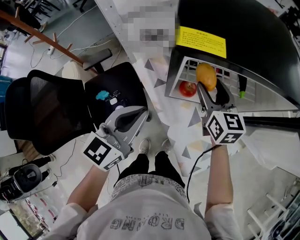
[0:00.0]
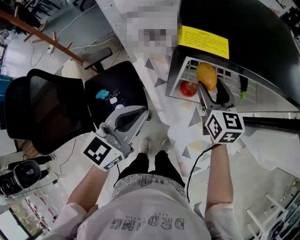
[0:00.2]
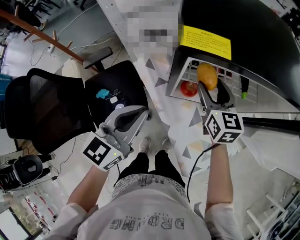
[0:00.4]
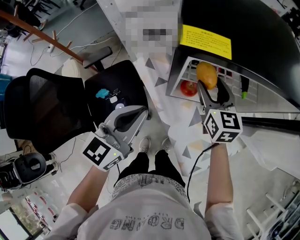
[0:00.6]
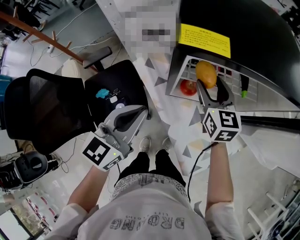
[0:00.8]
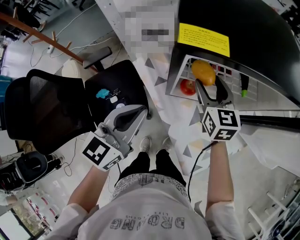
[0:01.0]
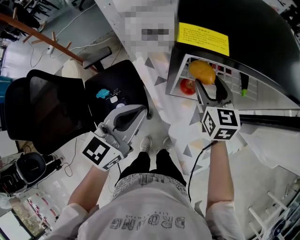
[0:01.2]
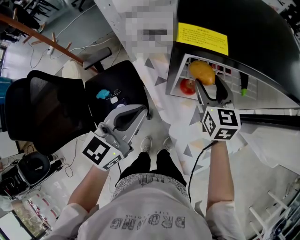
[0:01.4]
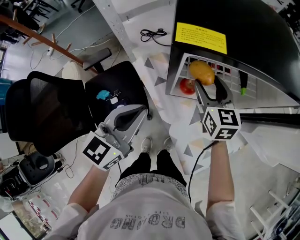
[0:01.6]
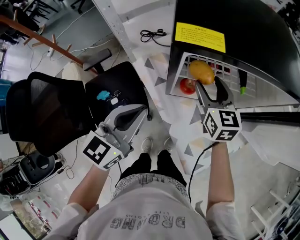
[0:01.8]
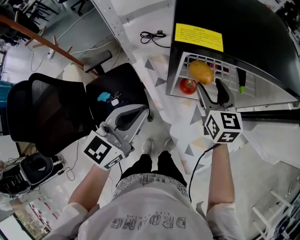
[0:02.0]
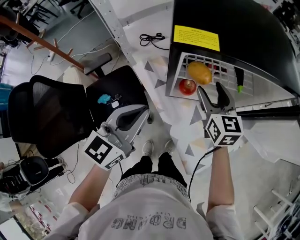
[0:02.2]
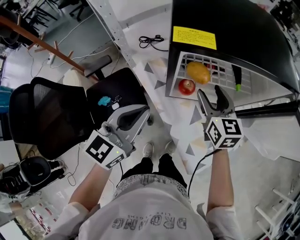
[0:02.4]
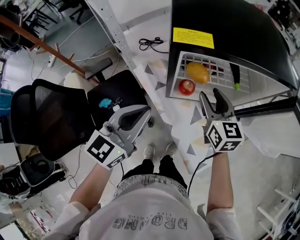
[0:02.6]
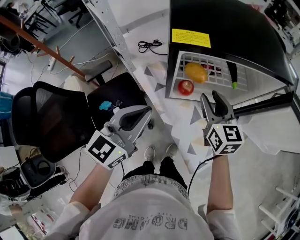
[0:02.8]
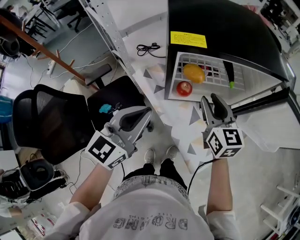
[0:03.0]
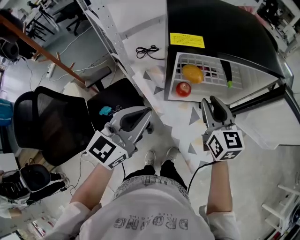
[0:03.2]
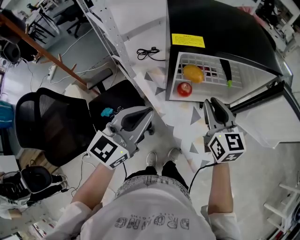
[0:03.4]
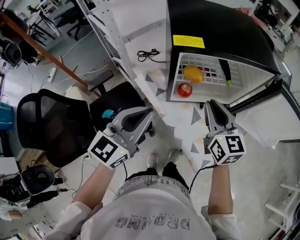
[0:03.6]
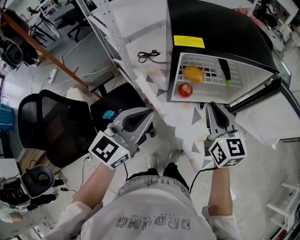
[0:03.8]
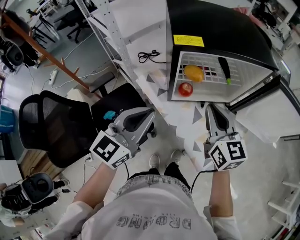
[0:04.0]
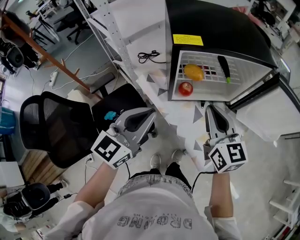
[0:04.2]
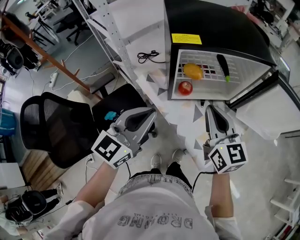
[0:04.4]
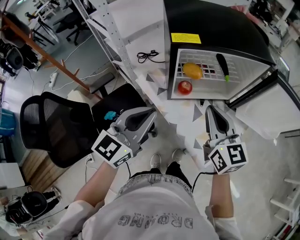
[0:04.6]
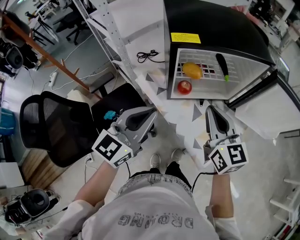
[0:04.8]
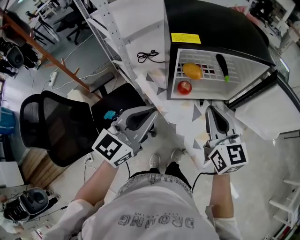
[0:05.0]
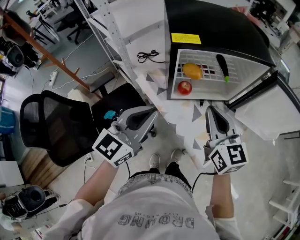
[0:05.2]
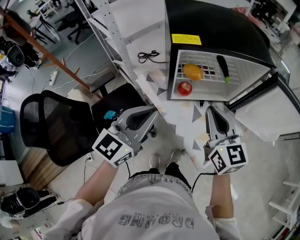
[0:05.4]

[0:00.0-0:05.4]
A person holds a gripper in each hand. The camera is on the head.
0:00.0 to 0:01.4: The grippers move only a little.
0:01.4 to 0:02.8: The right gripper is displaced backward by roughly 10 cm, and closes its fingers.
0:02.8 to 0:04.0: The left gripper changes place by approximately 5 cm; the right gripper moves backward and upward, some 10 cm, and closes up.
0:04.0 to 0:05.4: The grippers move only a little.

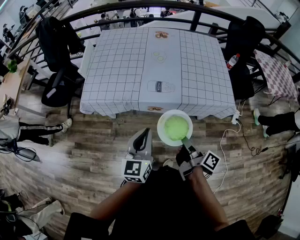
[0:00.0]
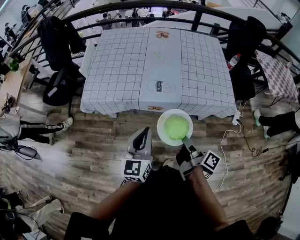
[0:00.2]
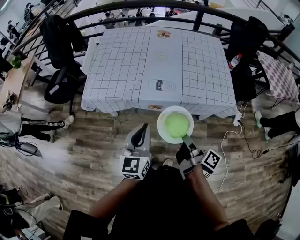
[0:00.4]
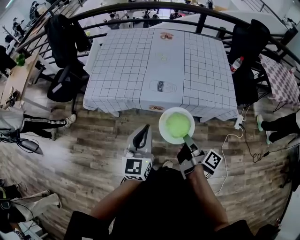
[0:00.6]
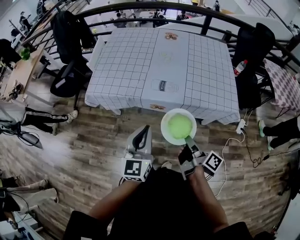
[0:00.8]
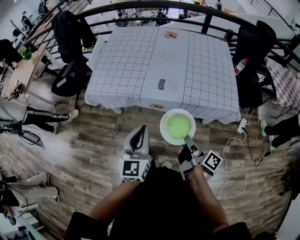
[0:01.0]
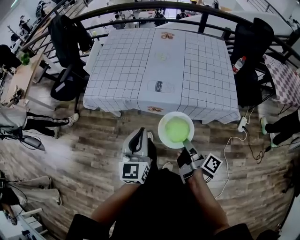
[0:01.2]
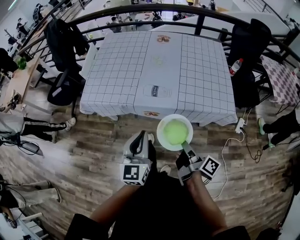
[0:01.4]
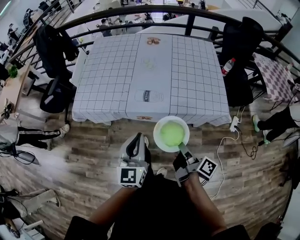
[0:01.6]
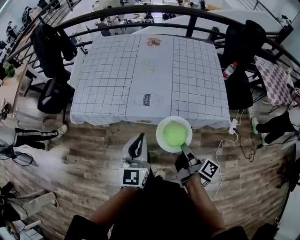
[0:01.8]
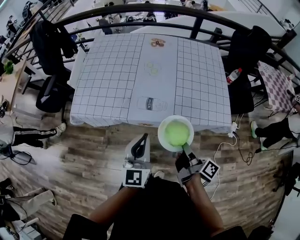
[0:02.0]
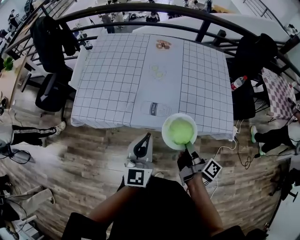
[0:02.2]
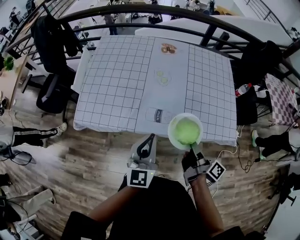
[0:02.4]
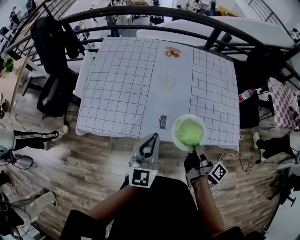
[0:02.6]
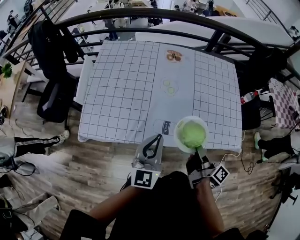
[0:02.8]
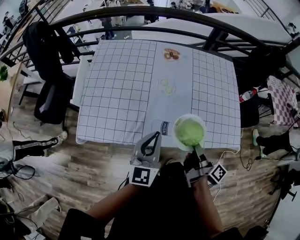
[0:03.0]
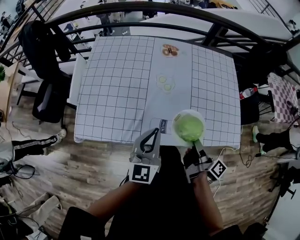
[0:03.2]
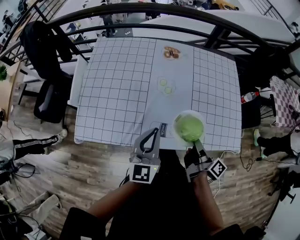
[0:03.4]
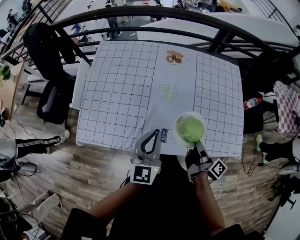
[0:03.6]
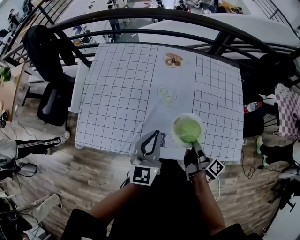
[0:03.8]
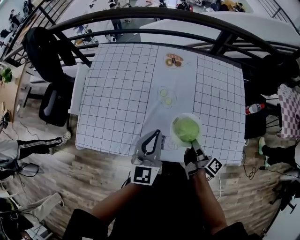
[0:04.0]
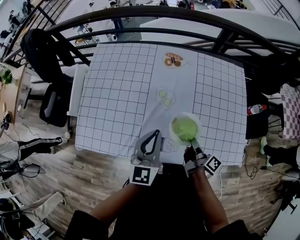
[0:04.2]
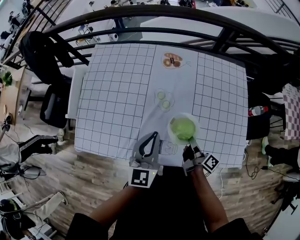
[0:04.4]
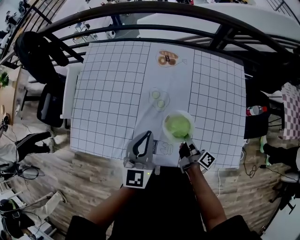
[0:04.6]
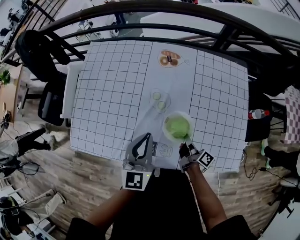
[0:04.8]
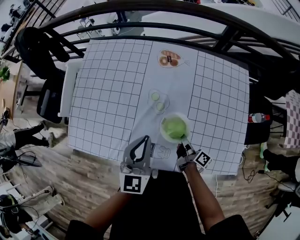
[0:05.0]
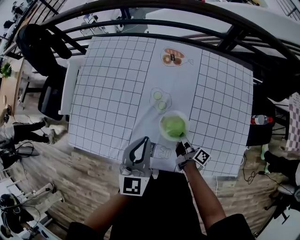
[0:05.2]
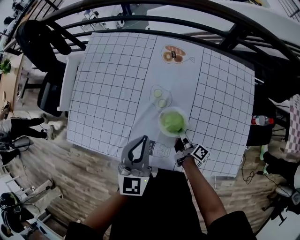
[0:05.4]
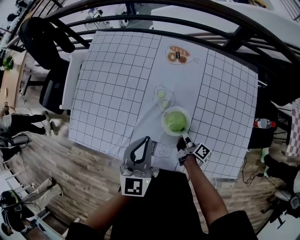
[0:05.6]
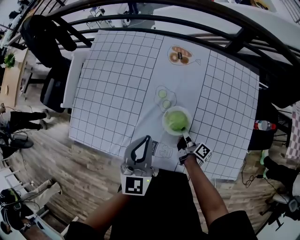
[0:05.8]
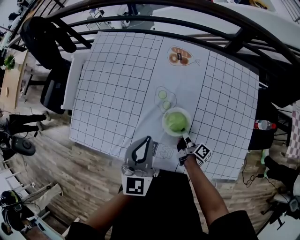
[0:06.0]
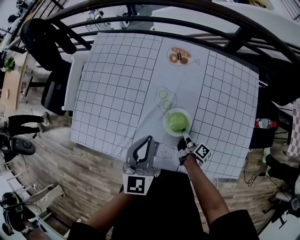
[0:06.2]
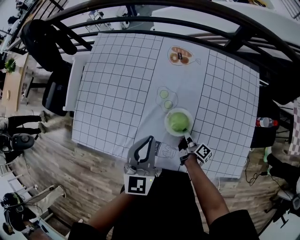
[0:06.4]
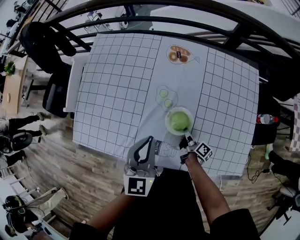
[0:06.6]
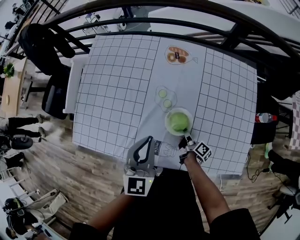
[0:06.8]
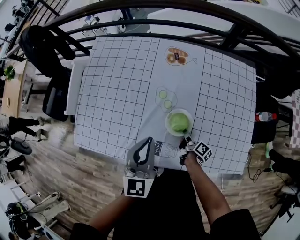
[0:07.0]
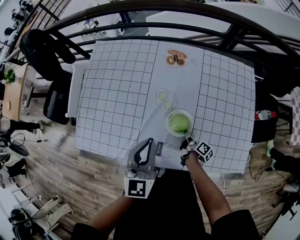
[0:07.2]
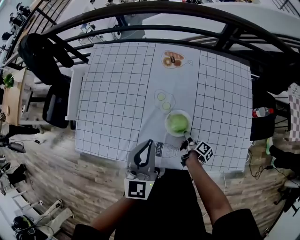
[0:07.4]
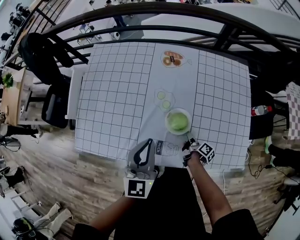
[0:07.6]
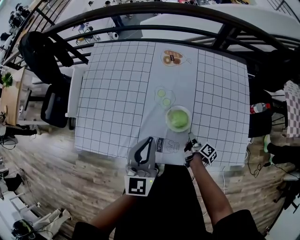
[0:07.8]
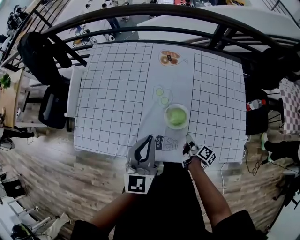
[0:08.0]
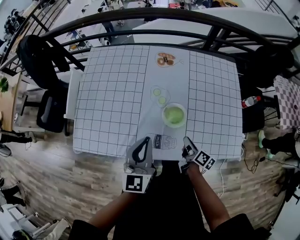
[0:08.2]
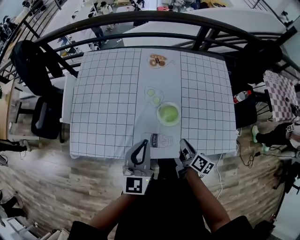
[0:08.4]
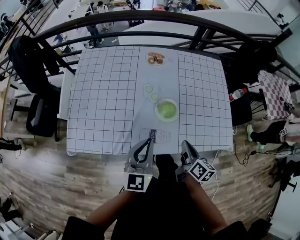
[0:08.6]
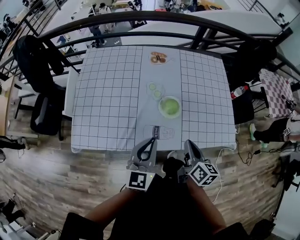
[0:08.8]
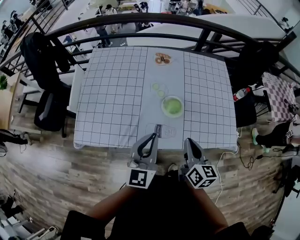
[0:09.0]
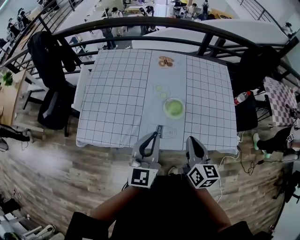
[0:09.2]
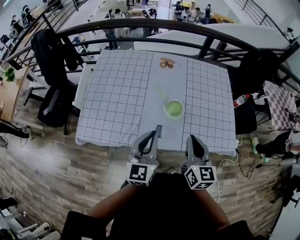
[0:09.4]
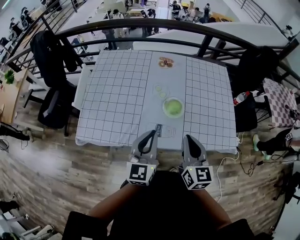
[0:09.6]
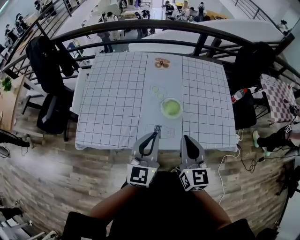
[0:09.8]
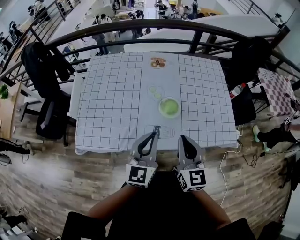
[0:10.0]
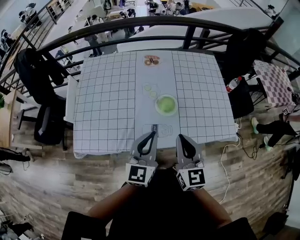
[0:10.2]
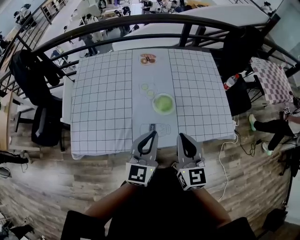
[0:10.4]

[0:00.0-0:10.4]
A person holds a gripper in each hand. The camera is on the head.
0:00.0 to 0:01.4: The left gripper changes place by about 5 cm.
0:01.4 to 0:03.0: The left gripper moves about 30 cm.
0:03.0 to 0:04.4: The left gripper changes place by about 15 cm.
0:07.4 to 0:09.0: The left gripper changes place by some 15 cm.

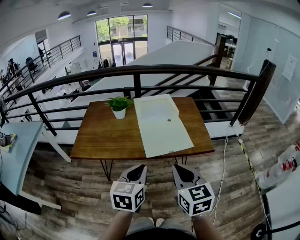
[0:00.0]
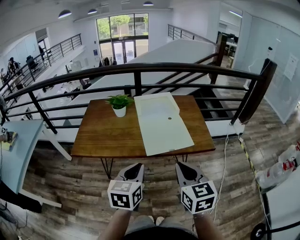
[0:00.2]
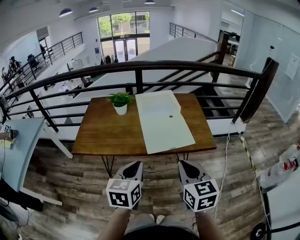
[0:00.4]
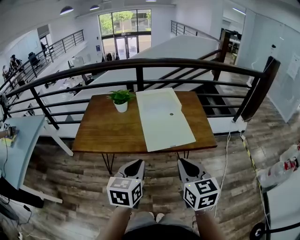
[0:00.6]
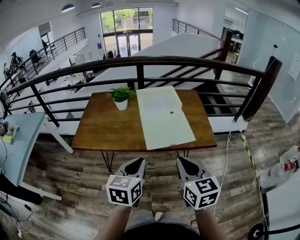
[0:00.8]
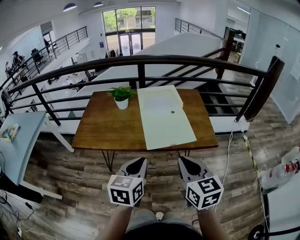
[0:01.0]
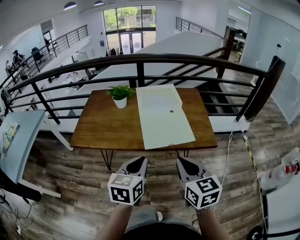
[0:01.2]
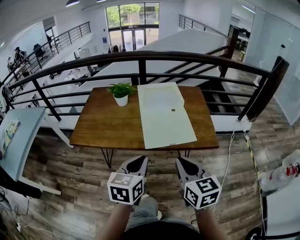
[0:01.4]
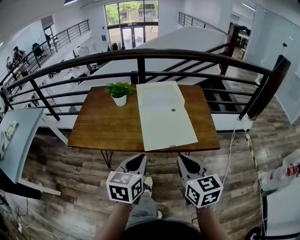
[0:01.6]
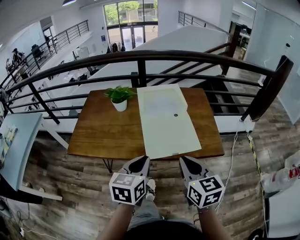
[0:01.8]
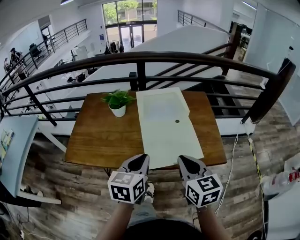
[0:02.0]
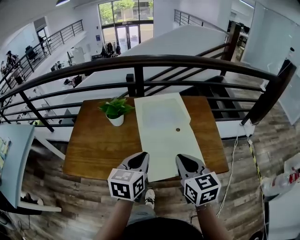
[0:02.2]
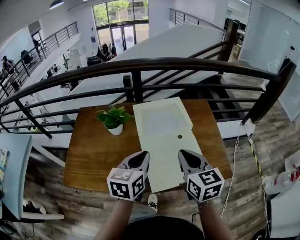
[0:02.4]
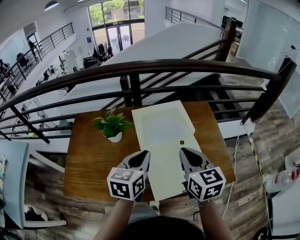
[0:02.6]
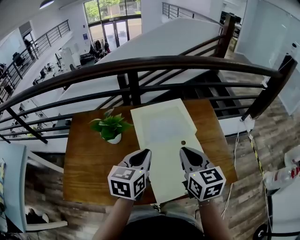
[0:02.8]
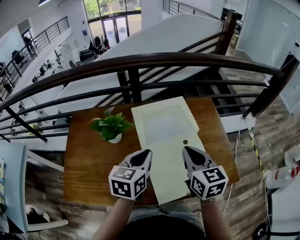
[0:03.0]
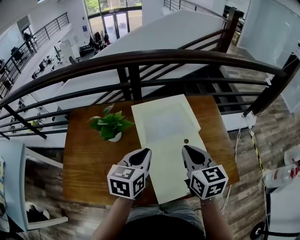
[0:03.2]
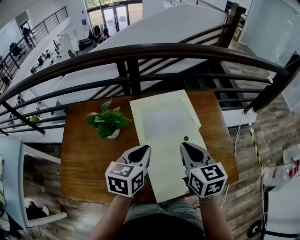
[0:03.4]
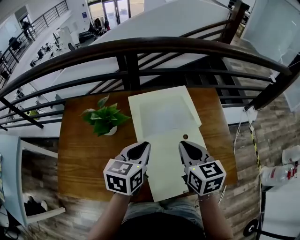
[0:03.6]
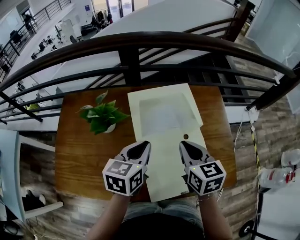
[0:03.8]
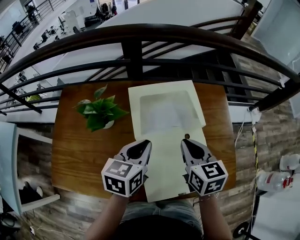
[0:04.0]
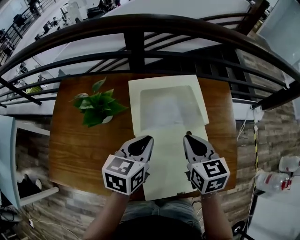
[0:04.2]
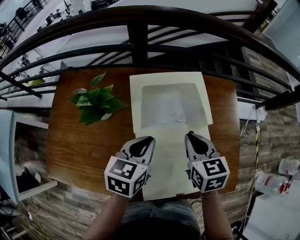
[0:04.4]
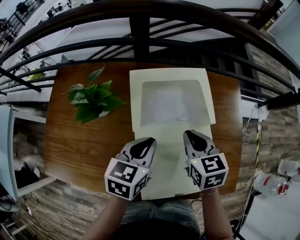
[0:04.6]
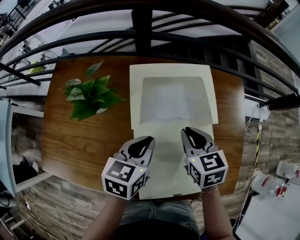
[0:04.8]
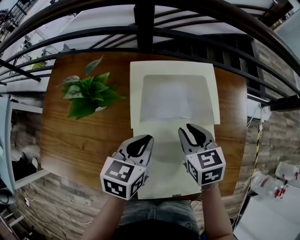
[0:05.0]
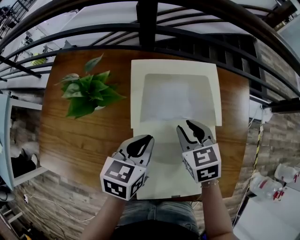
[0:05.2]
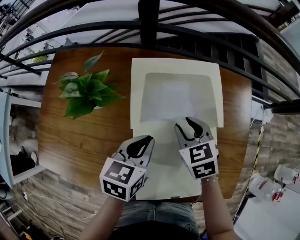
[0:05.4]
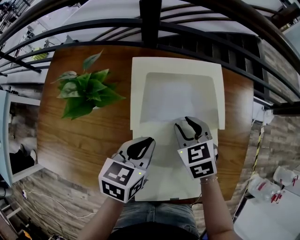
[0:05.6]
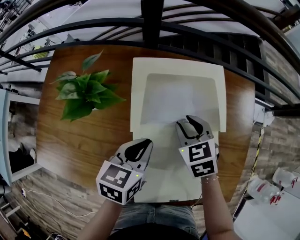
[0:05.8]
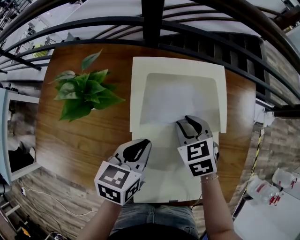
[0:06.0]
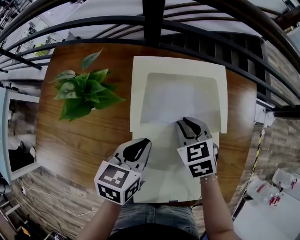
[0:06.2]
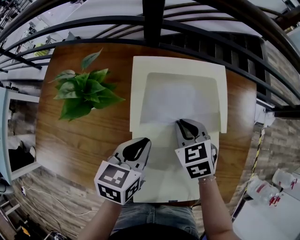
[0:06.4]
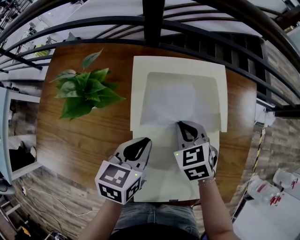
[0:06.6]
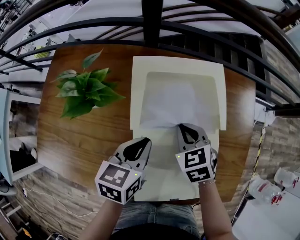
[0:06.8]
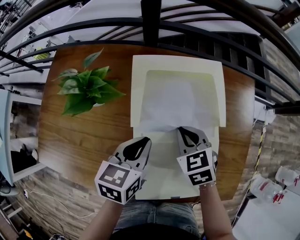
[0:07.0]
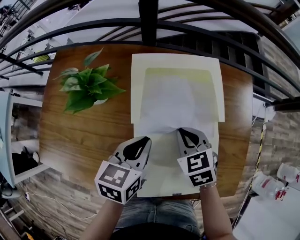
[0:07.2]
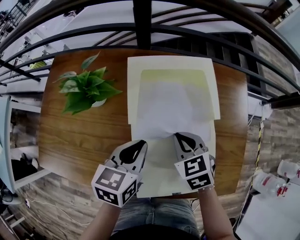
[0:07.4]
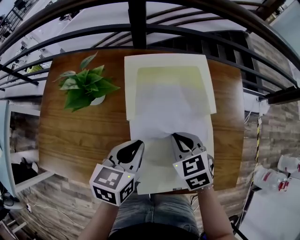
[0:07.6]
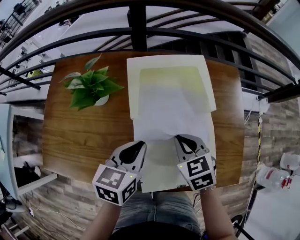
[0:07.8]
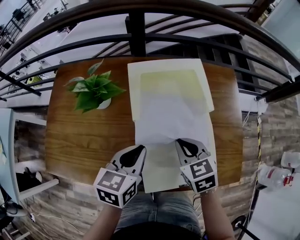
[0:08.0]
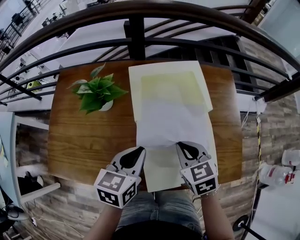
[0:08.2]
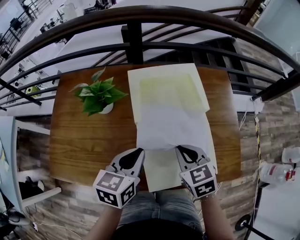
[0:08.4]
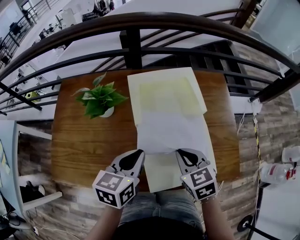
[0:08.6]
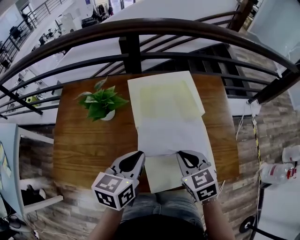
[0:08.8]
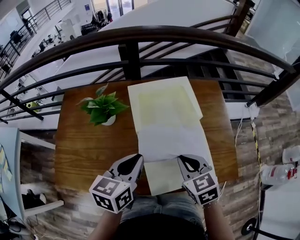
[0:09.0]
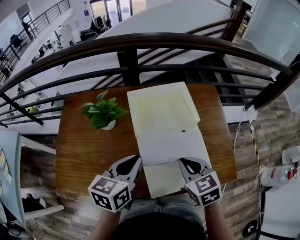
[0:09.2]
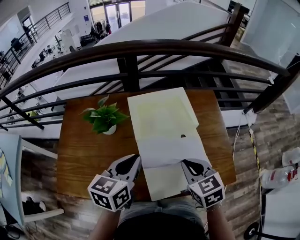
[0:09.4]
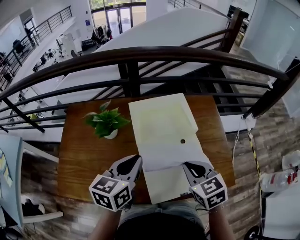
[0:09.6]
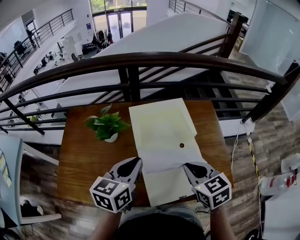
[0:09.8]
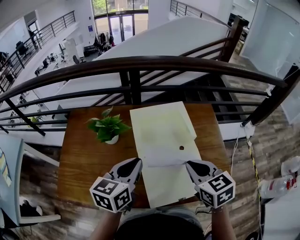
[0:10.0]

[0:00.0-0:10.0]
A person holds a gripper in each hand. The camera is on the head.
0:00.0 to 0:01.4: The right gripper moves approximately 5 cm.
0:01.4 to 0:02.8: The two grippers go approximately 35 cm forward.
0:02.8 to 0:04.2: Both grippers move downward and forward, roughly 10 cm.
0:04.2 to 0:05.8: The right gripper shifts about 15 cm downward and forward, changes its angle by some 30 degrees, and opens. Meanwhile the left gripper heads downward, covering about 5 cm.
0:05.8 to 0:07.2: The right gripper heads backward, covering about 5 cm, and closes.
0:07.2 to 0:08.6: Both grippers travel together backward and upward, some 10 cm.
0:08.6 to 0:10.0: Both grippers move upward, roughly 10 cm.
